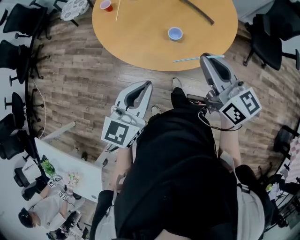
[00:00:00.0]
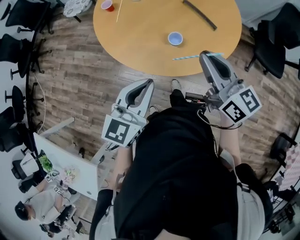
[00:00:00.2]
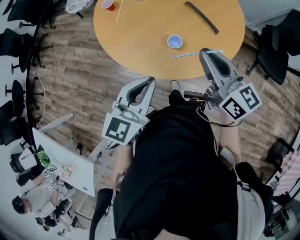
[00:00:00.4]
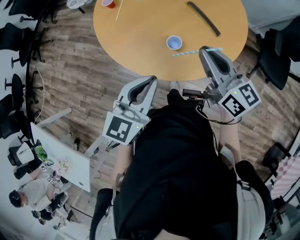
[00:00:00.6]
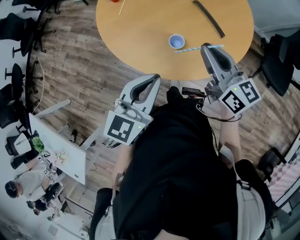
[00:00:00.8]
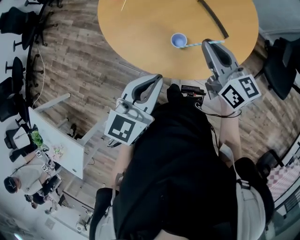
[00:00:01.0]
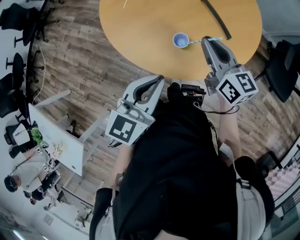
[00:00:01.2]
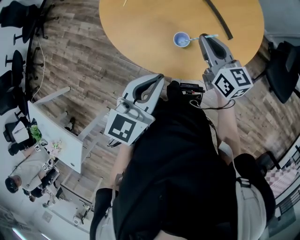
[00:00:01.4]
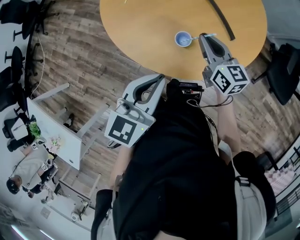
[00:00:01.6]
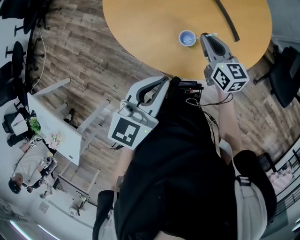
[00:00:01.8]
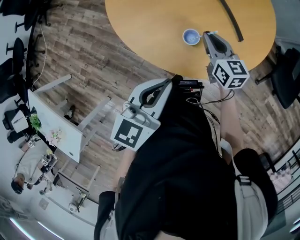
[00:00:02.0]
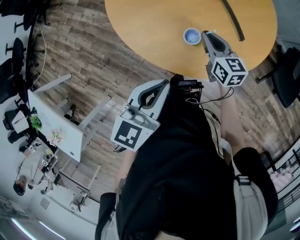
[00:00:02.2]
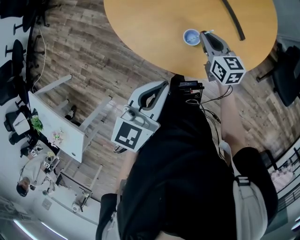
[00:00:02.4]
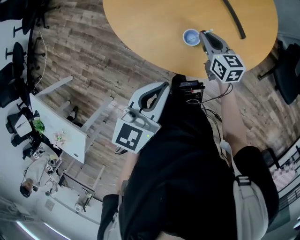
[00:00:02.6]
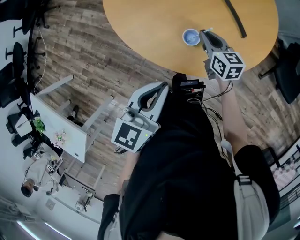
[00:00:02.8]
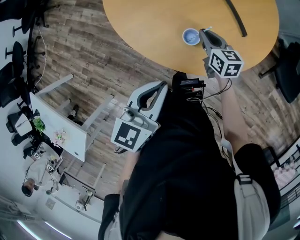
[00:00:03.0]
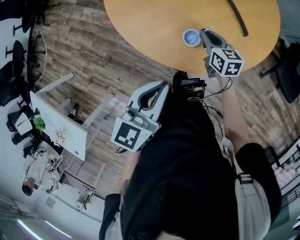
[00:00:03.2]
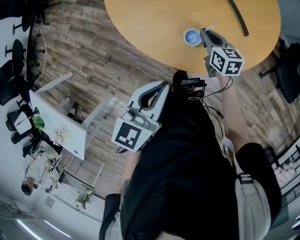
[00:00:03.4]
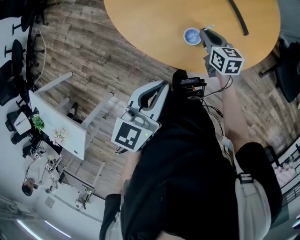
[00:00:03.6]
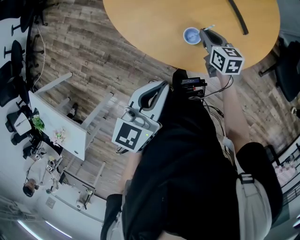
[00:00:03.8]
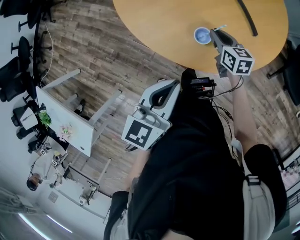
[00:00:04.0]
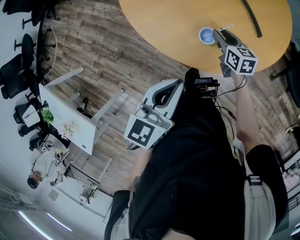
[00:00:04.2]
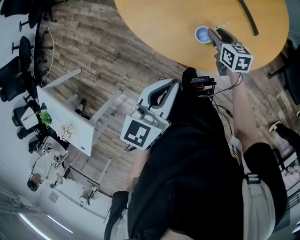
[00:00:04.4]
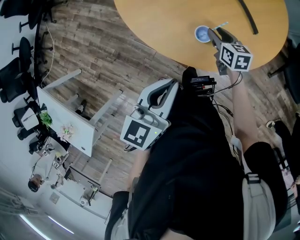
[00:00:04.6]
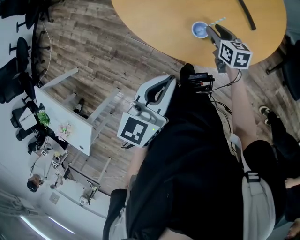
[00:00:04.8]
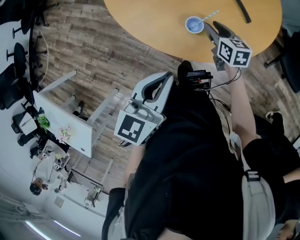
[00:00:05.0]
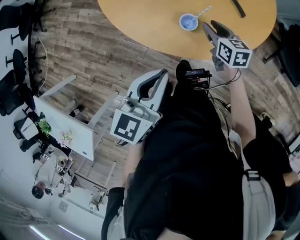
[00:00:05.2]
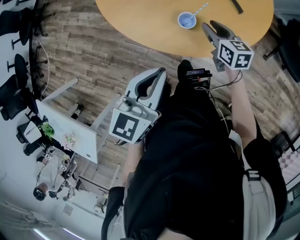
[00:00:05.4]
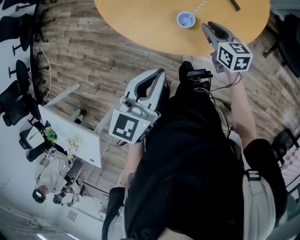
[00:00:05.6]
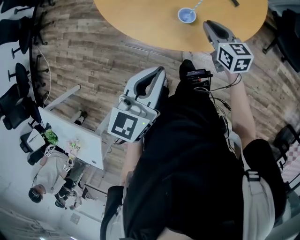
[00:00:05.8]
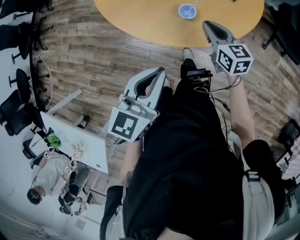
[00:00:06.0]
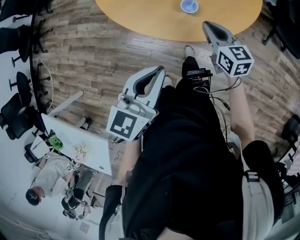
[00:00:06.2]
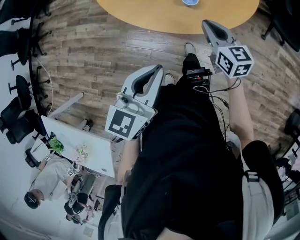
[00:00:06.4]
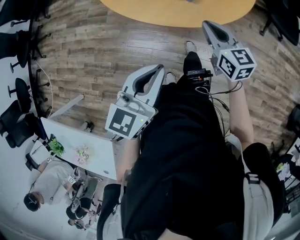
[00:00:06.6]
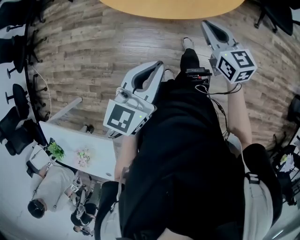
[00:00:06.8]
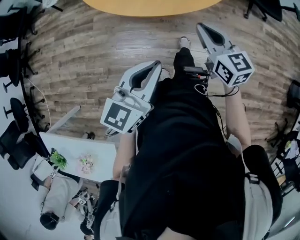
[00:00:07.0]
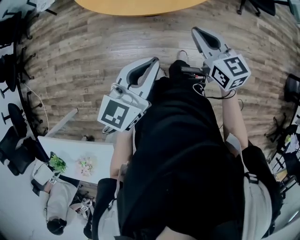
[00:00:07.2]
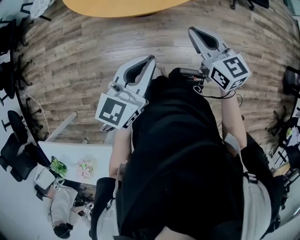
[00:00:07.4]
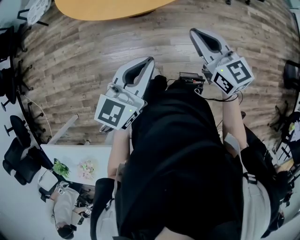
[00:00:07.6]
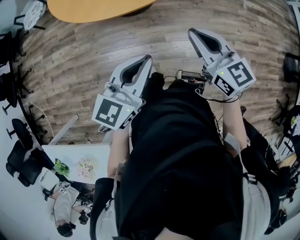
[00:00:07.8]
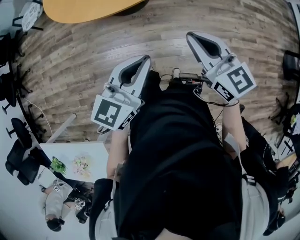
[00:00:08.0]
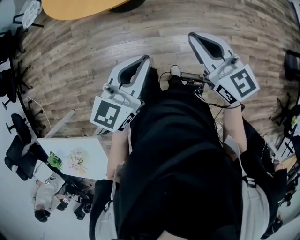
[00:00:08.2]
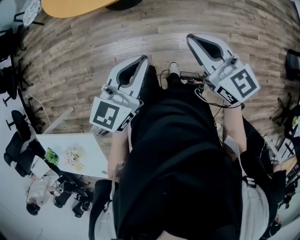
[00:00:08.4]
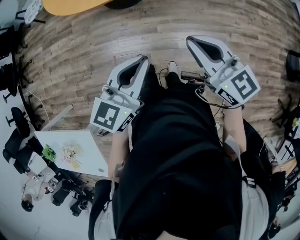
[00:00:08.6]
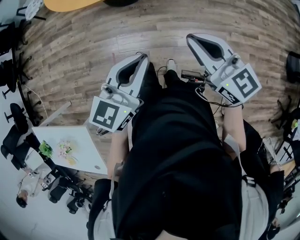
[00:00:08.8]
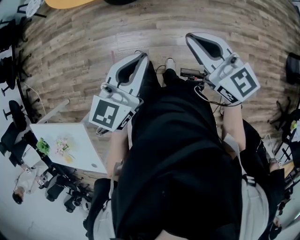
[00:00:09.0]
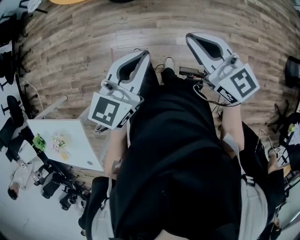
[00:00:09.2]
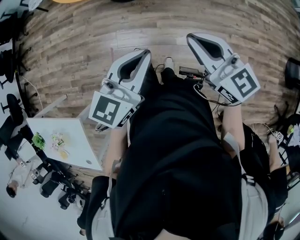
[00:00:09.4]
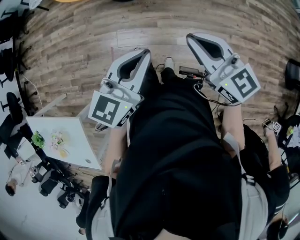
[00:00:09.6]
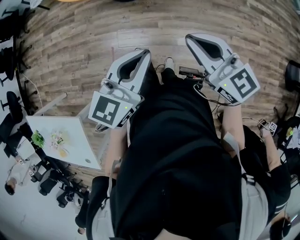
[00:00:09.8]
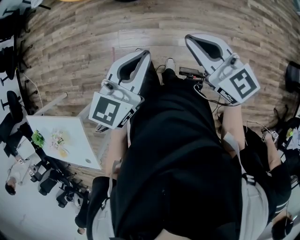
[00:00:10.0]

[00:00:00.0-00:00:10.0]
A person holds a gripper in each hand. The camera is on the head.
00:00:00.0 to 00:00:01.4: The right gripper shifts some 25 cm forward and downward, while the left gripper moves forward and to the right, approximately 15 cm.
00:00:01.4 to 00:00:02.8: The right gripper travels downward by approximately 15 cm.
00:00:02.8 to 00:00:04.2: The right gripper opens up.
00:00:04.2 to 00:00:05.8: The right gripper shifts approximately 10 cm backward and upward.
00:00:05.8 to 00:00:07.2: The two grippers go roughly 25 cm backward. The left gripper rotates roughly 30 degrees.
00:00:07.2 to 00:00:08.6: Both grippers travel together to the right and backward, roughly 25 cm.
00:00:08.6 to 00:00:10.0: The grippers move only a little.

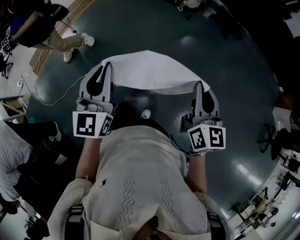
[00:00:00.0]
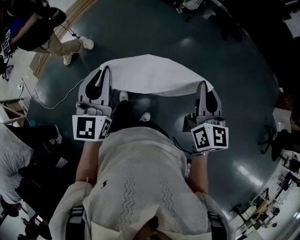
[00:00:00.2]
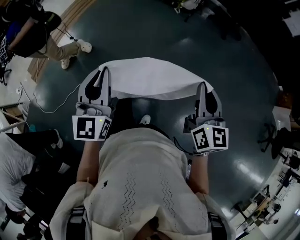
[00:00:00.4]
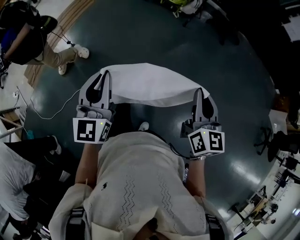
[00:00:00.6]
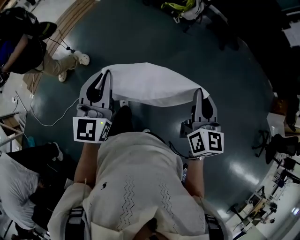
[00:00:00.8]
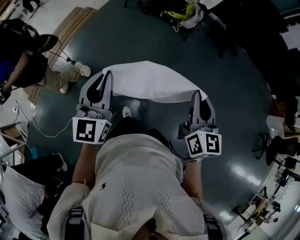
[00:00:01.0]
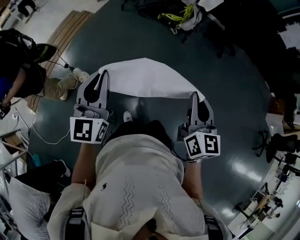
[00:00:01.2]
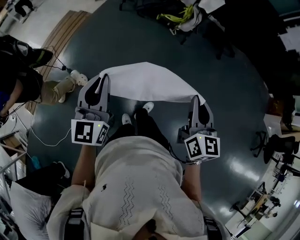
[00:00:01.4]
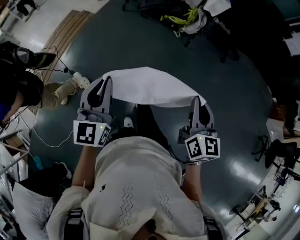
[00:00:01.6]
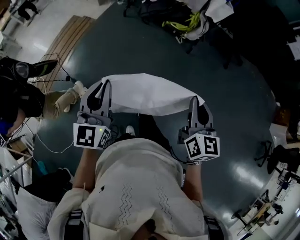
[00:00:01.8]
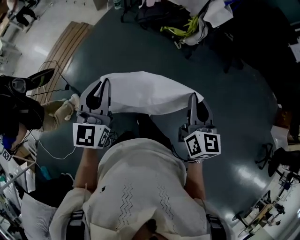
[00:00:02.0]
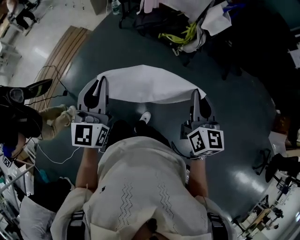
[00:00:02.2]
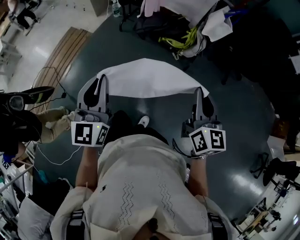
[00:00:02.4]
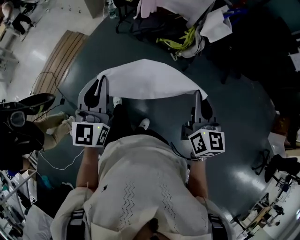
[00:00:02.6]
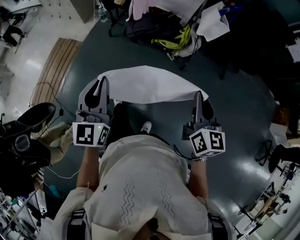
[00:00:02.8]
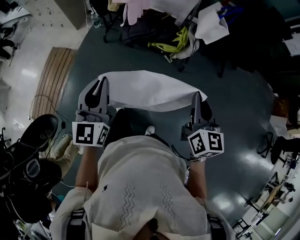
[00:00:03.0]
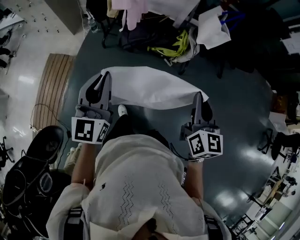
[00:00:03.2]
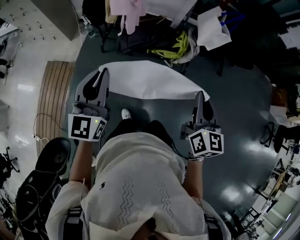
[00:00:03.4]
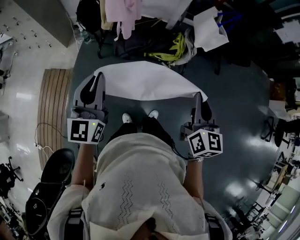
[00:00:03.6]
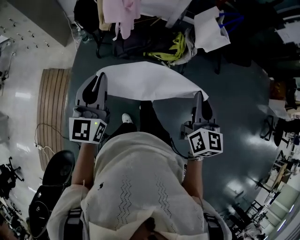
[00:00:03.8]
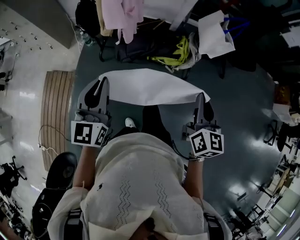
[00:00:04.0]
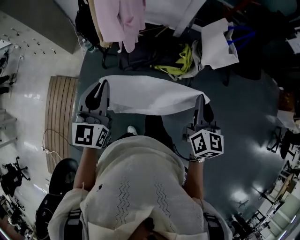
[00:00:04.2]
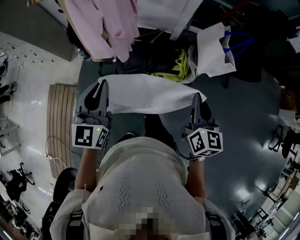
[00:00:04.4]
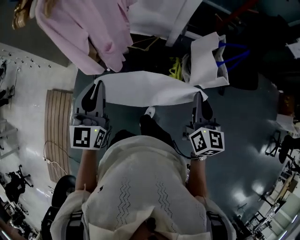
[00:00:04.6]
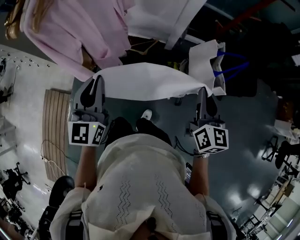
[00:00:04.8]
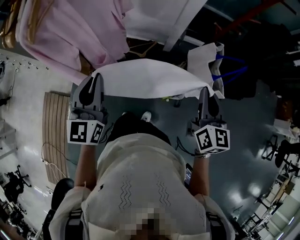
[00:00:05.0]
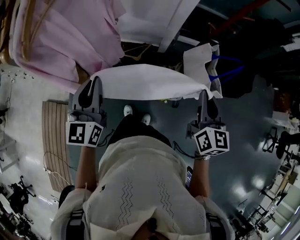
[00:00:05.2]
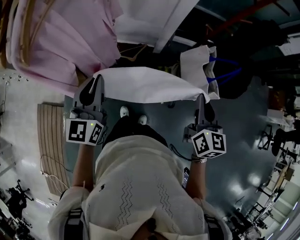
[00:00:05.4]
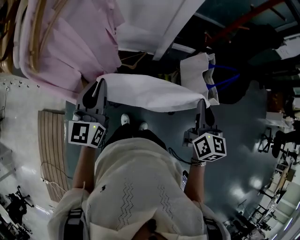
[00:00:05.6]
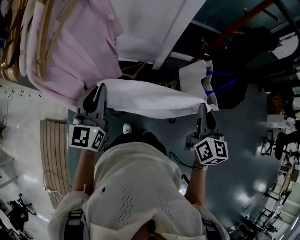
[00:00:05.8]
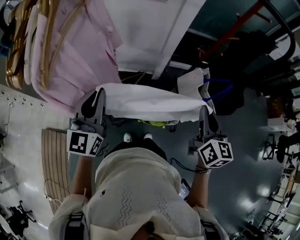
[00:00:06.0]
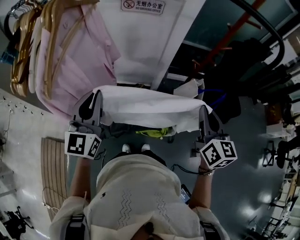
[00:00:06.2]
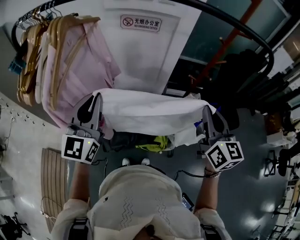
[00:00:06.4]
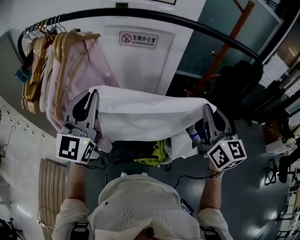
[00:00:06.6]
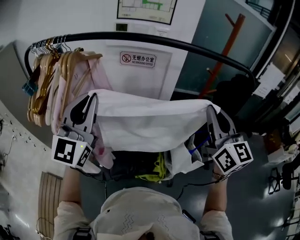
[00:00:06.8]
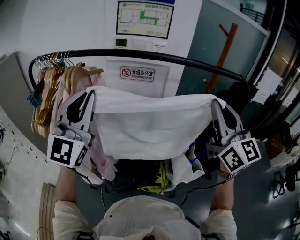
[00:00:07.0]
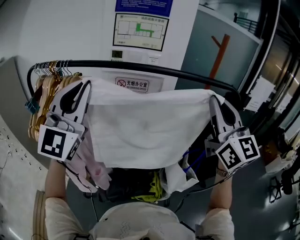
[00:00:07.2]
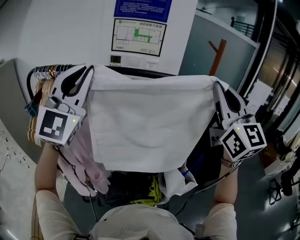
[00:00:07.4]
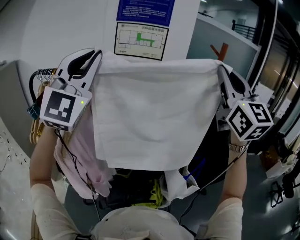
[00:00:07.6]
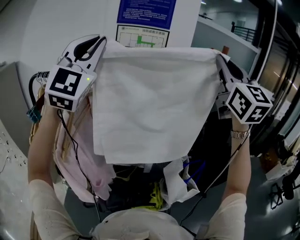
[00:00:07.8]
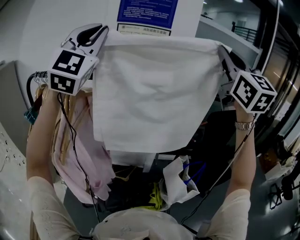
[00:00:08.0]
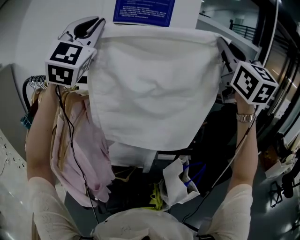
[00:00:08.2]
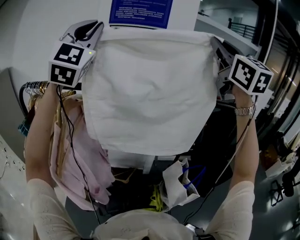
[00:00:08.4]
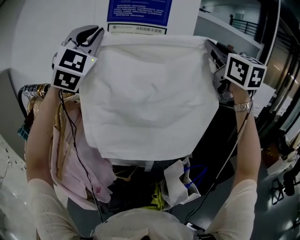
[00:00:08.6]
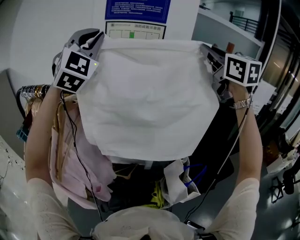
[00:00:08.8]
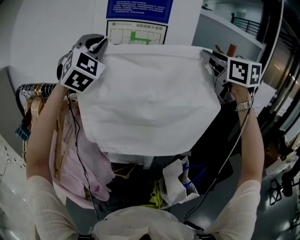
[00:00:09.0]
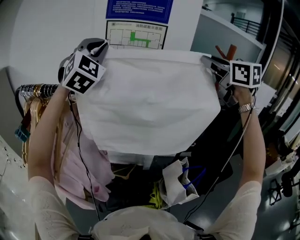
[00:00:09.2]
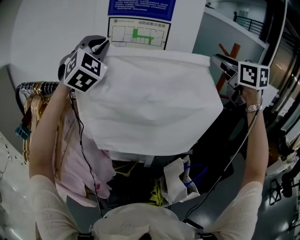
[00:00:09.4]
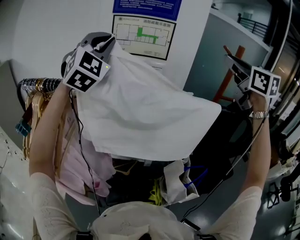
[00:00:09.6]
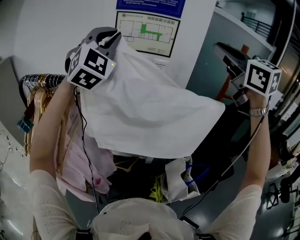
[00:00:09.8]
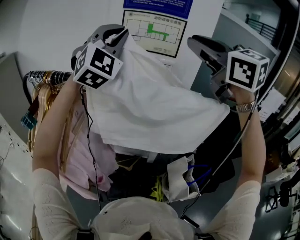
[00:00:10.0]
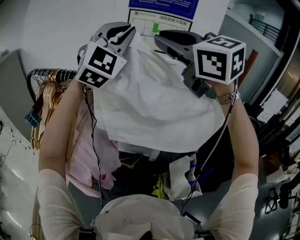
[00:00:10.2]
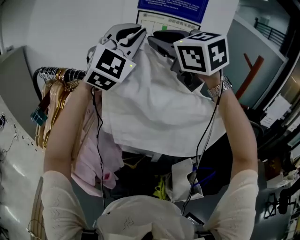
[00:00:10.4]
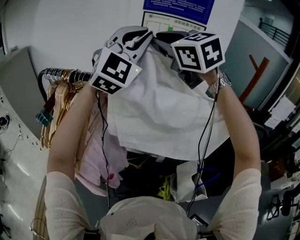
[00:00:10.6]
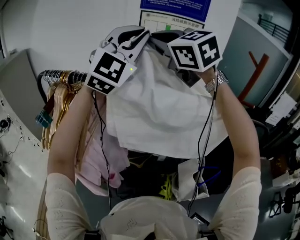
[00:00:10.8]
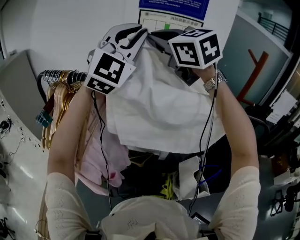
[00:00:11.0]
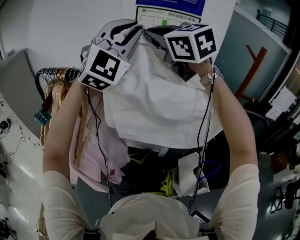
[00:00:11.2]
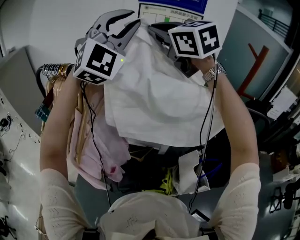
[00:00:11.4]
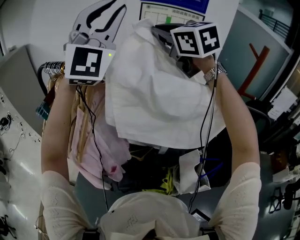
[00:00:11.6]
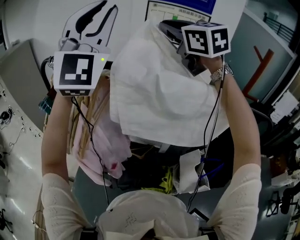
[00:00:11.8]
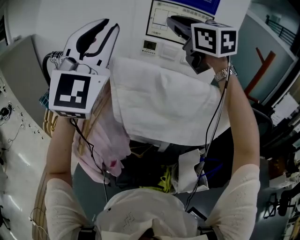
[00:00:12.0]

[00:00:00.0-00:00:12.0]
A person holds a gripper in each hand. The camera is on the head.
00:00:00.0 to 00:00:01.6: The pair of grippers is taken forward, approximately 40 cm.
00:00:01.6 to 00:00:03.0: The two grippers travel together, forward, some 50 cm.
00:00:03.0 to 00:00:04.4: Both grippers move forward, some 40 cm.
00:00:04.4 to 00:00:06.0: The two grippers go some 25 cm forward.
00:00:06.0 to 00:00:07.6: Both grippers travel together upward, about 50 cm. The left gripper twists approximately 50 degrees clockwise, seen from behind. Meanwhile the right gripper angles its fingers upward, by approximately 30 degrees.
00:00:07.6 to 00:00:09.0: Both grippers move forward, some 20 cm. The left gripper swivels some 20 degrees. The right gripper turns by about 30 degrees.
00:00:09.0 to 00:00:10.4: The right gripper is displaced to the left by roughly 30 cm, and swivels roughly 30 degrees.
00:00:10.4 to 00:00:12.0: The left gripper heads to the left and backward, covering approximately 15 cm.

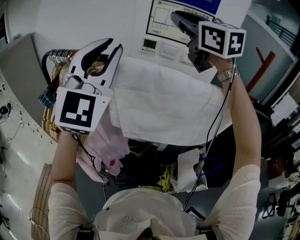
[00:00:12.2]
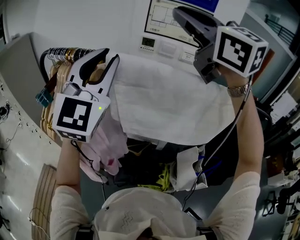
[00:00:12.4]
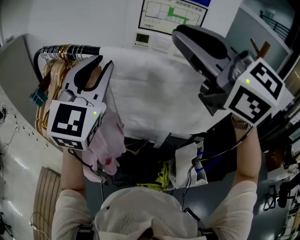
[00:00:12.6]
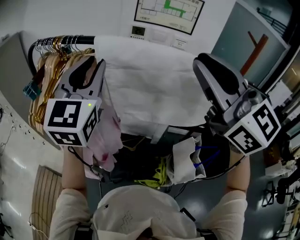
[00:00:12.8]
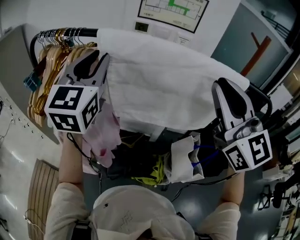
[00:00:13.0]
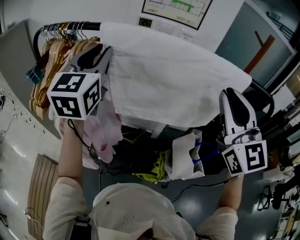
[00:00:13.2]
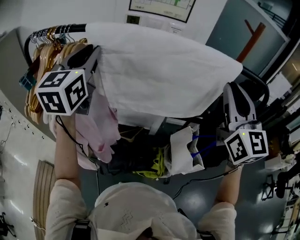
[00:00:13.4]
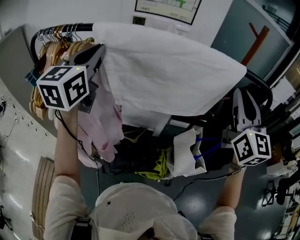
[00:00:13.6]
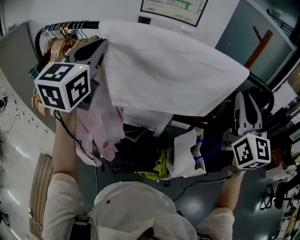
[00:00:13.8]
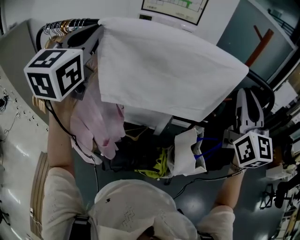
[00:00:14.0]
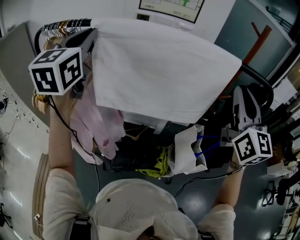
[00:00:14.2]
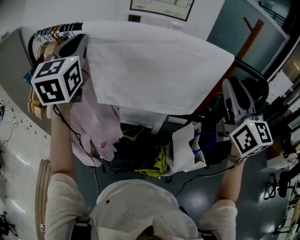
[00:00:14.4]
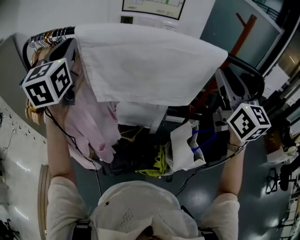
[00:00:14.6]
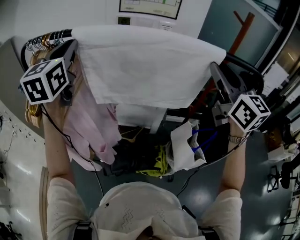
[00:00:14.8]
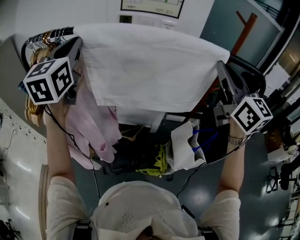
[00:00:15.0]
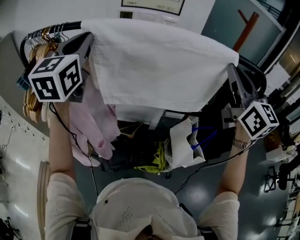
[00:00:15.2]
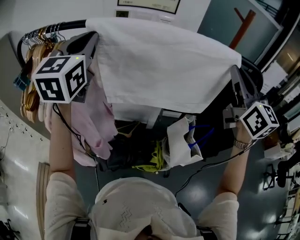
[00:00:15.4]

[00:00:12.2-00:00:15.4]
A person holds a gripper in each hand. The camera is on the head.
00:00:12.2 to 00:00:13.8: The left gripper goes about 10 cm downward, and rotates approximately 30 degrees. Meanwhile the right gripper shifts by about 40 cm, and swivels roughly 40 degrees.
